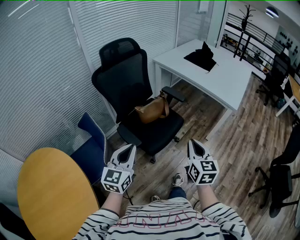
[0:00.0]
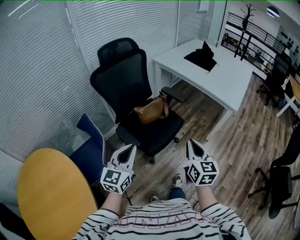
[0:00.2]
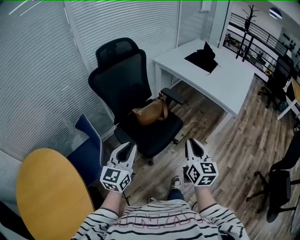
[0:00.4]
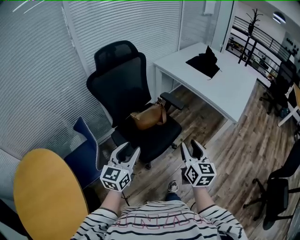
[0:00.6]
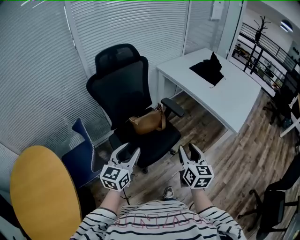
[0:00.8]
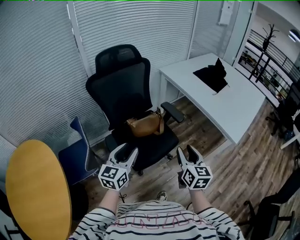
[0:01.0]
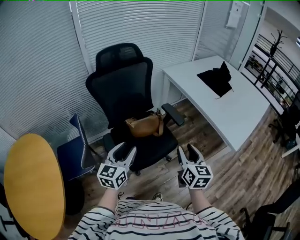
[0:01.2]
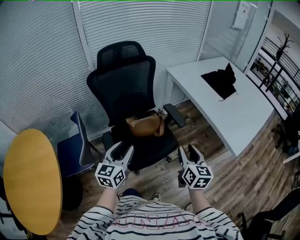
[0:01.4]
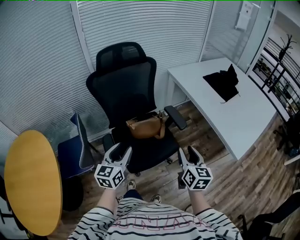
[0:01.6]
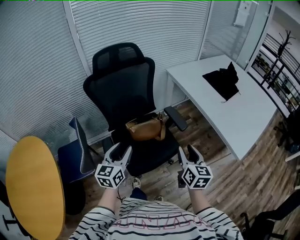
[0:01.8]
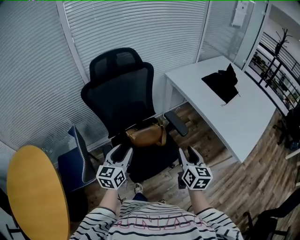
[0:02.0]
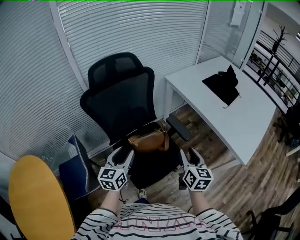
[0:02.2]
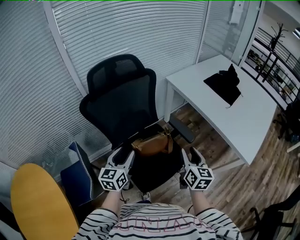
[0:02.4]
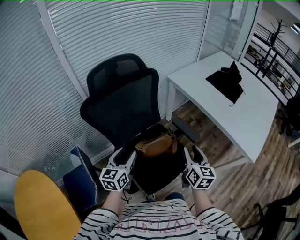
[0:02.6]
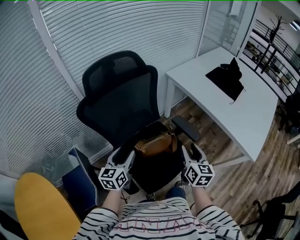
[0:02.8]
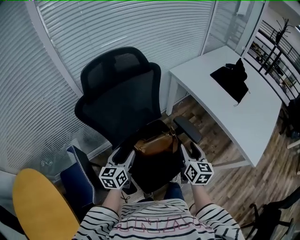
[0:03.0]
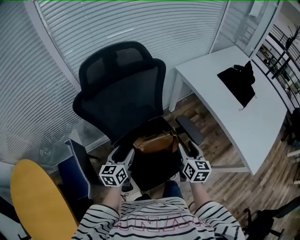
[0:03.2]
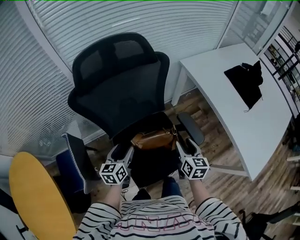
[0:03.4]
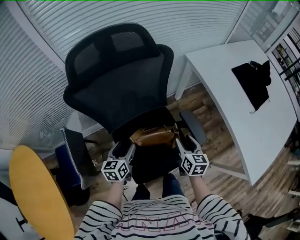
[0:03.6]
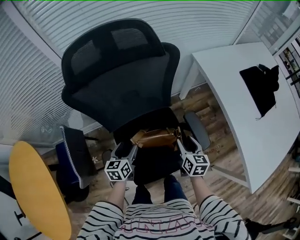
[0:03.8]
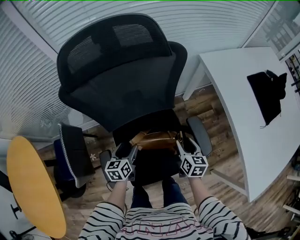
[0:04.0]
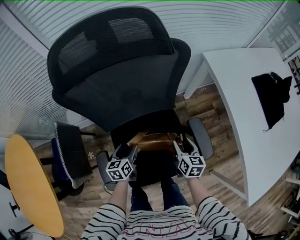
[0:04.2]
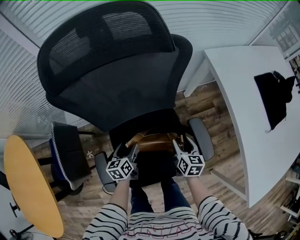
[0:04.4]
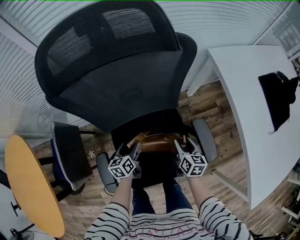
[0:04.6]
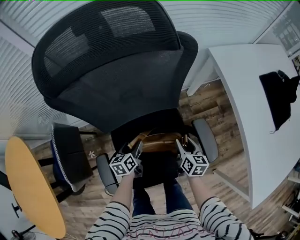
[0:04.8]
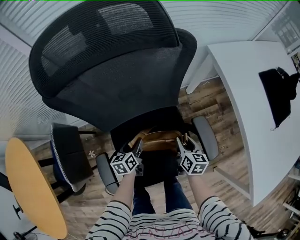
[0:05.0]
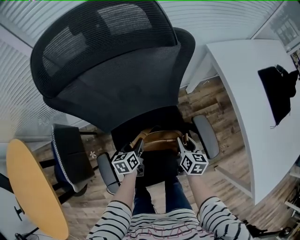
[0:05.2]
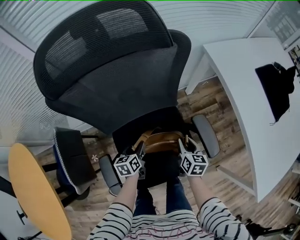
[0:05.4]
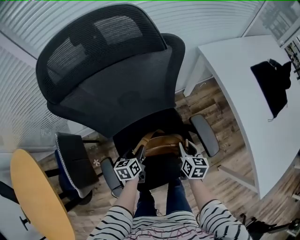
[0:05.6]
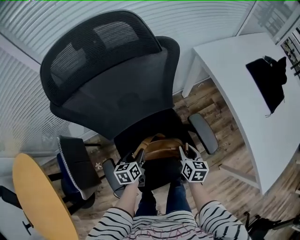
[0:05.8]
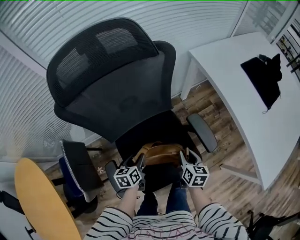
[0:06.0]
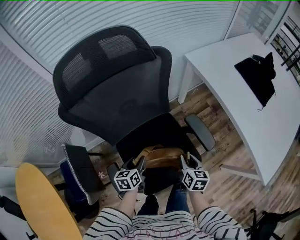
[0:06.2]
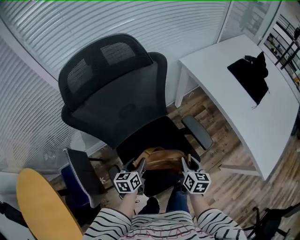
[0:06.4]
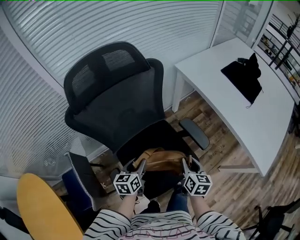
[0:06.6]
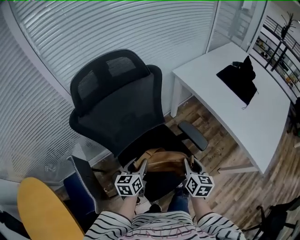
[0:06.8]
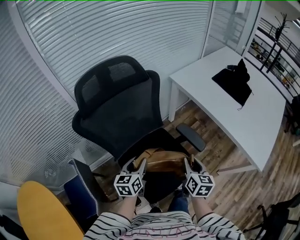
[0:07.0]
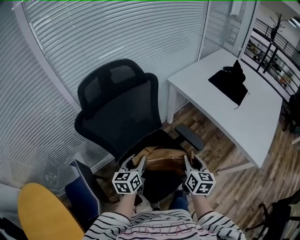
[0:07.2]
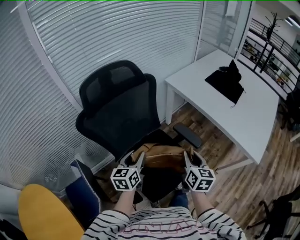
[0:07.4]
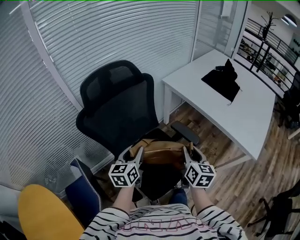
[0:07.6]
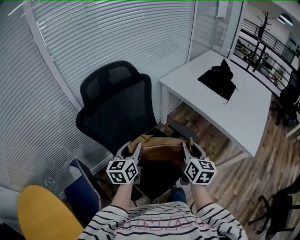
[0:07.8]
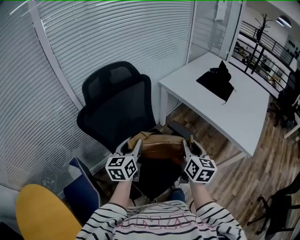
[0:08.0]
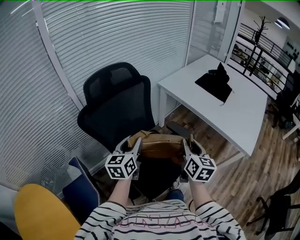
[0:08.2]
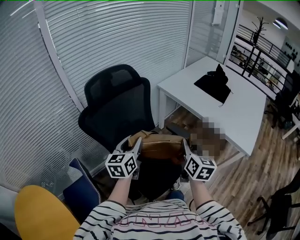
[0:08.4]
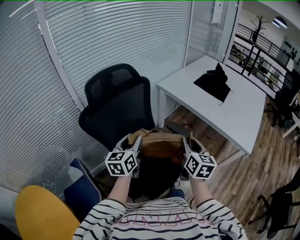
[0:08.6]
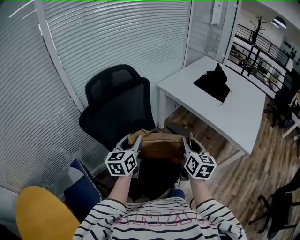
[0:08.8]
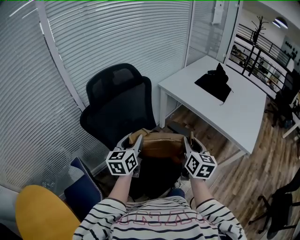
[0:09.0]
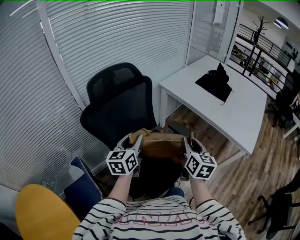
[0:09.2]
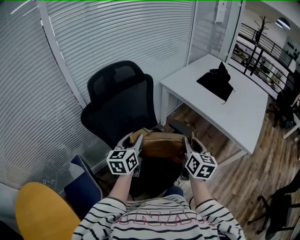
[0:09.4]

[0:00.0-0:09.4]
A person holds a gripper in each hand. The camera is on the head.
0:00.0 to 0:01.6: The two grippers go roughly 25 cm forward and to the right. The left gripper changes its angle by about 20 degrees, and opens, while the right gripper opens.
0:01.6 to 0:03.2: The right gripper is displaced forward, to the left and downward by approximately 25 cm, while the left gripper travels forward, downward and to the left by some 30 cm.
0:03.2 to 0:04.8: The left gripper moves downward, approximately 25 cm, and swivels about 30 degrees, while the right gripper goes some 25 cm downward and forward, and rotates approximately 20 degrees.
0:04.8 to 0:06.2: The left gripper travels upward and backward by about 10 cm, and closes its fingers. The right gripper moves backward and upward, some 15 cm.
0:06.2 to 0:07.8: Both grippers travel together upward, some 25 cm. The right gripper changes its angle by roughly 30 degrees; the left gripper changes its angle by about 30 degrees.
0:07.8 to 0:09.4: The grippers stay close to where they were, moving slightly.

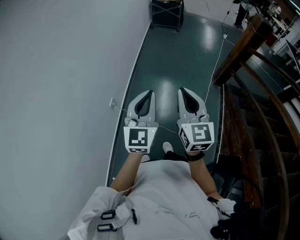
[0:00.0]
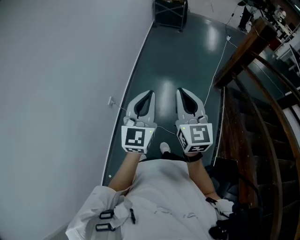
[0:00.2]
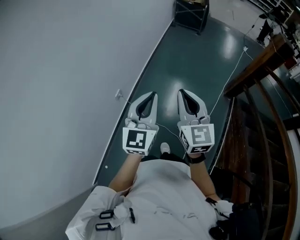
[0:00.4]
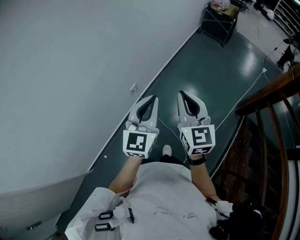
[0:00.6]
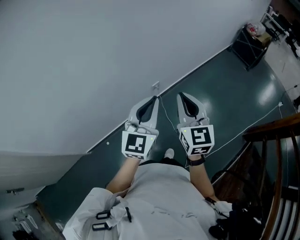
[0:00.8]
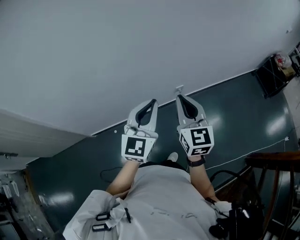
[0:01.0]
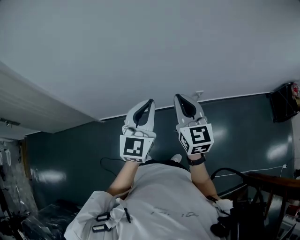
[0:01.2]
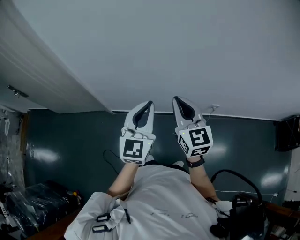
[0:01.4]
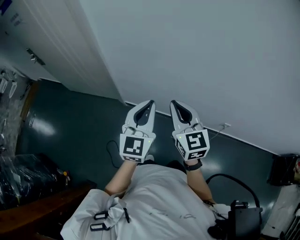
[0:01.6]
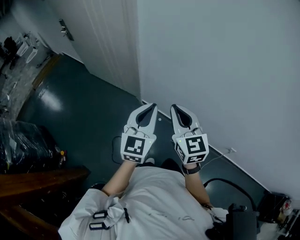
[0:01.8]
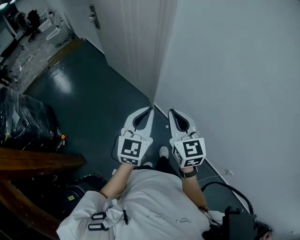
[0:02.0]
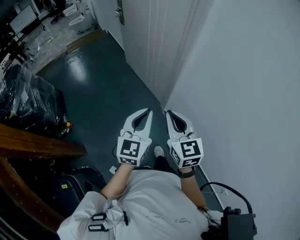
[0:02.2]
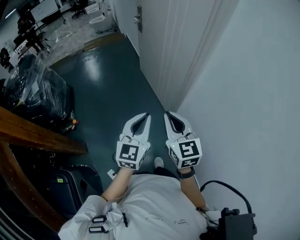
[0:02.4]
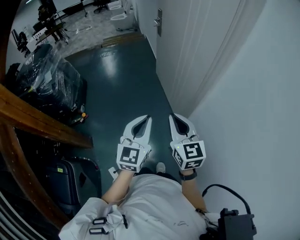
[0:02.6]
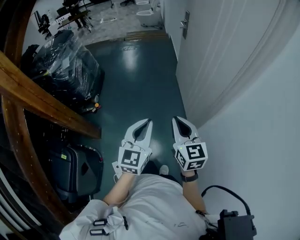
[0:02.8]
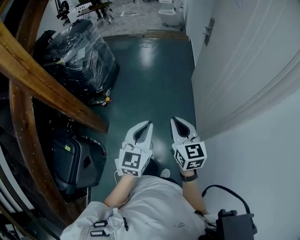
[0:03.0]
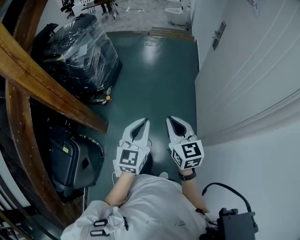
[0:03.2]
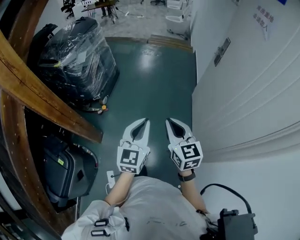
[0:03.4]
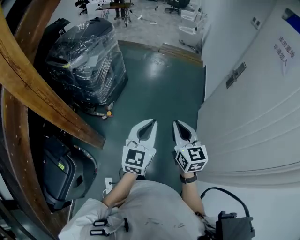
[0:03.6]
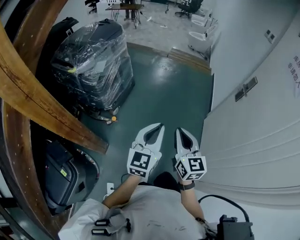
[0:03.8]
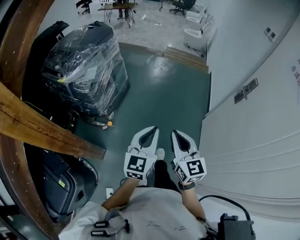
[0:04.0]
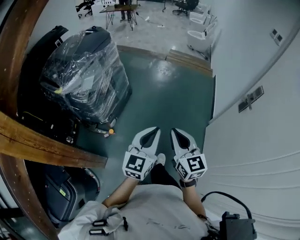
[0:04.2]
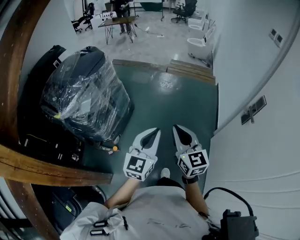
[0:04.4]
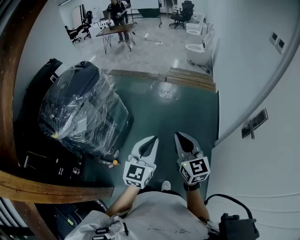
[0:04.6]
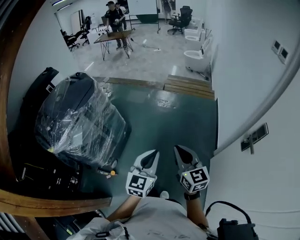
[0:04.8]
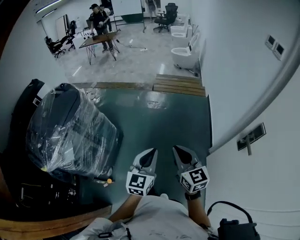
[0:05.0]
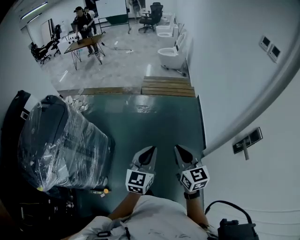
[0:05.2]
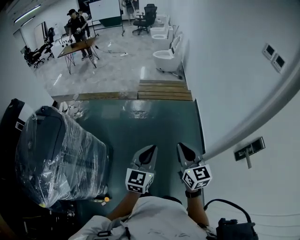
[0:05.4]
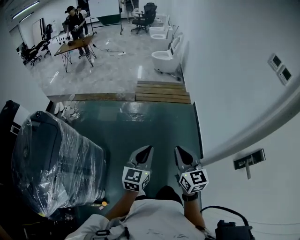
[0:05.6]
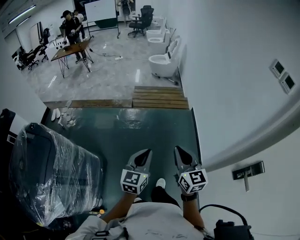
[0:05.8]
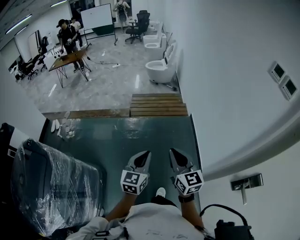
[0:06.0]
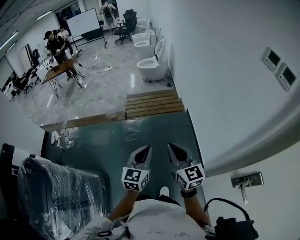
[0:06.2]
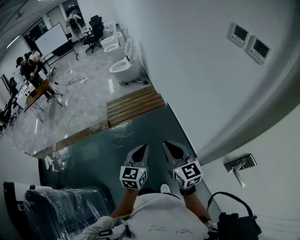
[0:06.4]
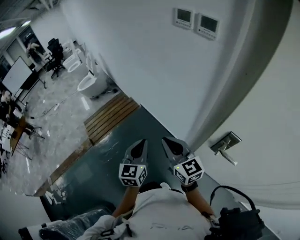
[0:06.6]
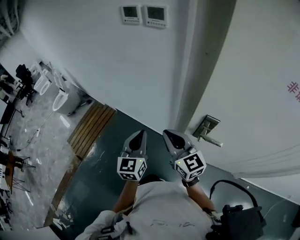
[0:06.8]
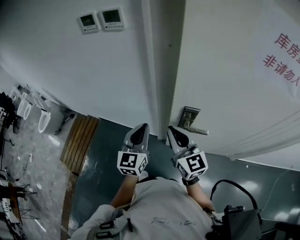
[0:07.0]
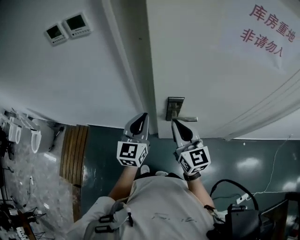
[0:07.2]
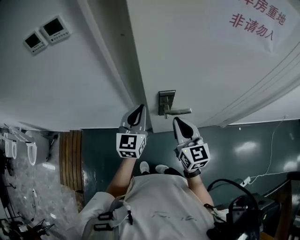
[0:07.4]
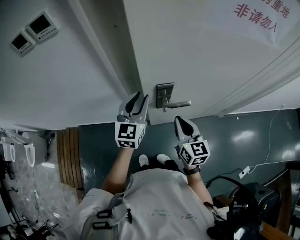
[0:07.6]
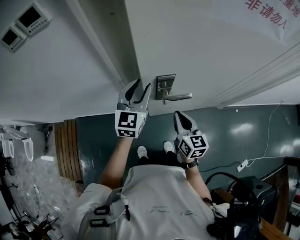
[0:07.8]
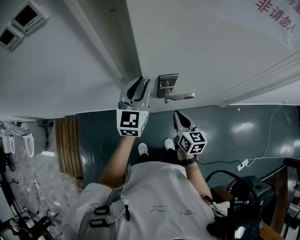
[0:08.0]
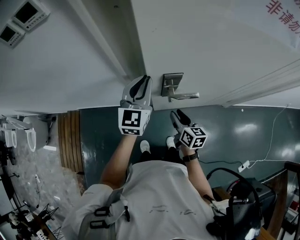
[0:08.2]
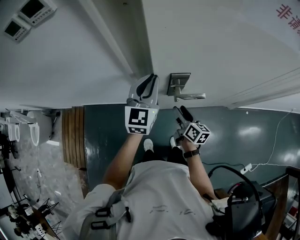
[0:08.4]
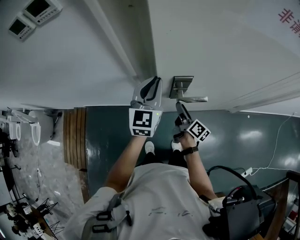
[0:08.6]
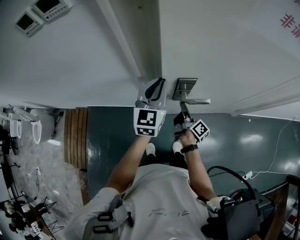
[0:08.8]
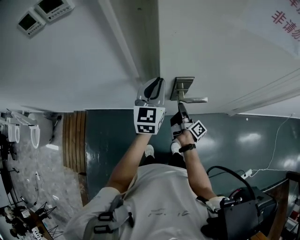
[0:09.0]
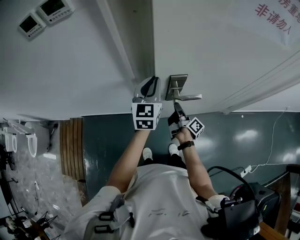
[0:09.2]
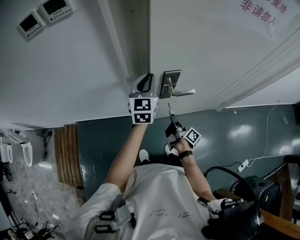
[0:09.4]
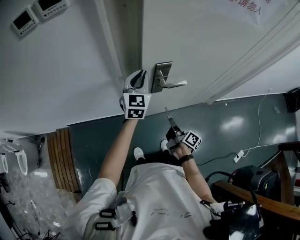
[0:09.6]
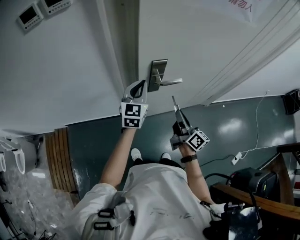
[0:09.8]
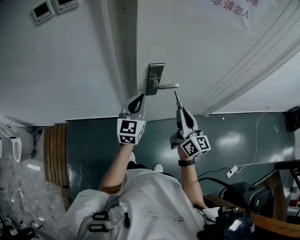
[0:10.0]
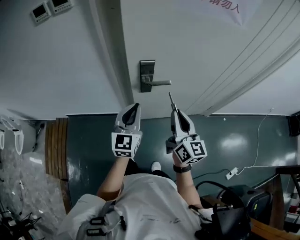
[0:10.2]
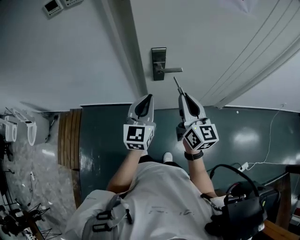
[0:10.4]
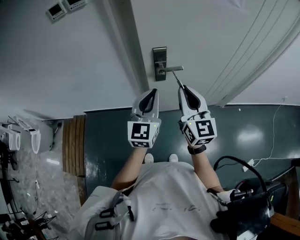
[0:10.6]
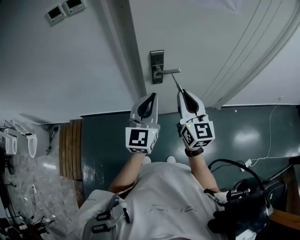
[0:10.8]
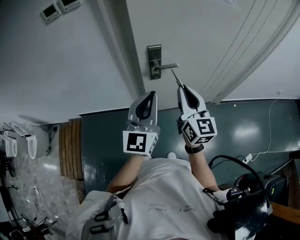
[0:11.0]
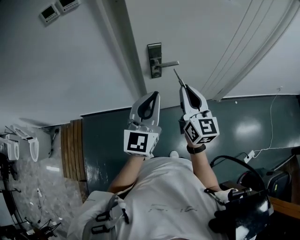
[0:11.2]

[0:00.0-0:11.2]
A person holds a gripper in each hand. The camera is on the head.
0:00.0 to 0:01.6: Both grippers are carried approximately 60 cm. The left gripper rotates roughly 90 degrees. The right gripper turns by some 100 degrees.
0:01.6 to 0:03.2: Both grippers are carried roughly 50 cm. The left gripper changes its angle by roughly 80 degrees, while the right gripper turns by some 80 degrees.
0:03.2 to 0:04.8: The two grippers travel together, forward, about 60 cm.
0:04.8 to 0:06.4: The pair of grippers is taken approximately 50 cm. The right gripper swivels approximately 30 degrees. The left gripper turns by about 30 degrees.
0:06.4 to 0:08.0: The right gripper ends up roughly 40 cm from where it was, and changes its angle by some 90 degrees. Meanwhile the left gripper changes place by about 50 cm, changes its angle by roughly 70 degrees, and opens up.
0:08.0 to 0:09.6: The right gripper goes roughly 10 cm backward and downward, twists some 50 degrees clockwise, seen from behind, and opens and closes again.
0:09.6 to 0:11.2: The right gripper heads upward, covering some 30 cm, and rolls counterclockwise, seen from behind, by roughly 70 degrees. The left gripper moves backward and upward, roughly 30 cm.

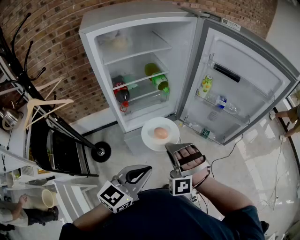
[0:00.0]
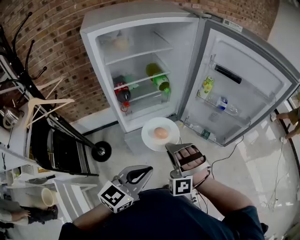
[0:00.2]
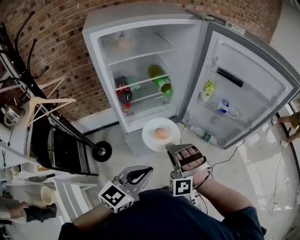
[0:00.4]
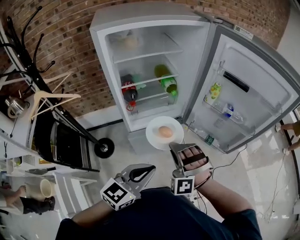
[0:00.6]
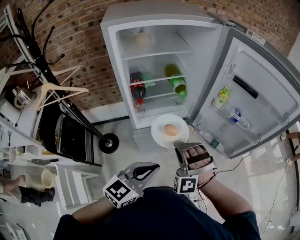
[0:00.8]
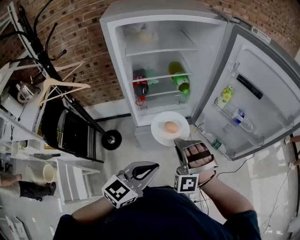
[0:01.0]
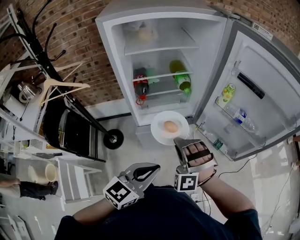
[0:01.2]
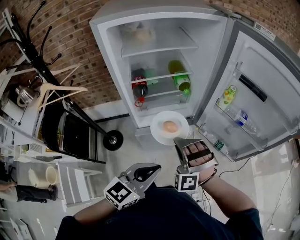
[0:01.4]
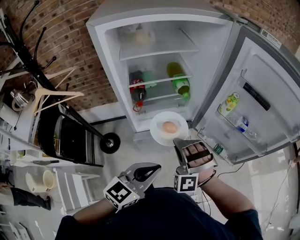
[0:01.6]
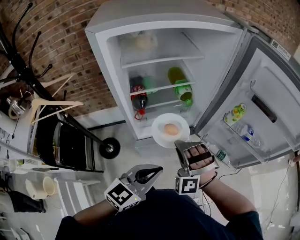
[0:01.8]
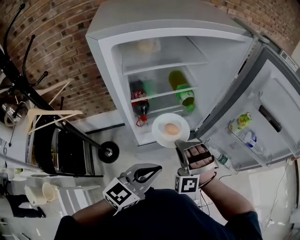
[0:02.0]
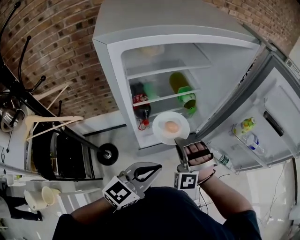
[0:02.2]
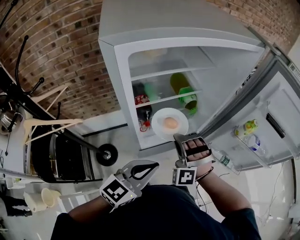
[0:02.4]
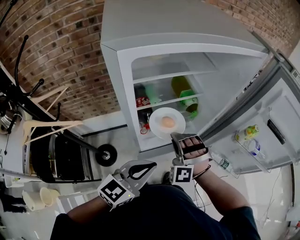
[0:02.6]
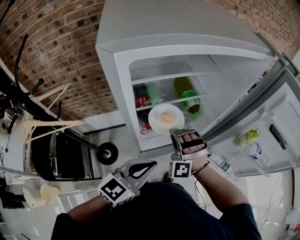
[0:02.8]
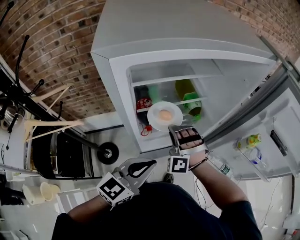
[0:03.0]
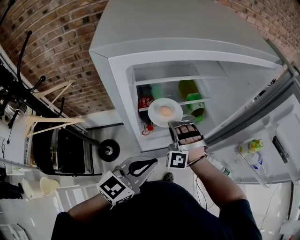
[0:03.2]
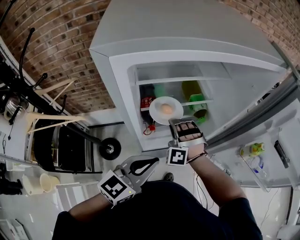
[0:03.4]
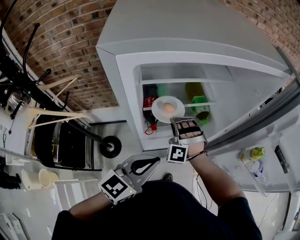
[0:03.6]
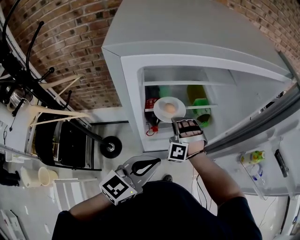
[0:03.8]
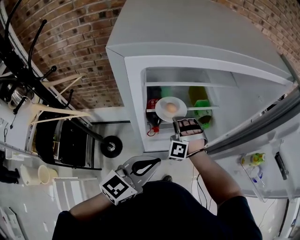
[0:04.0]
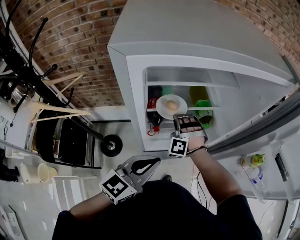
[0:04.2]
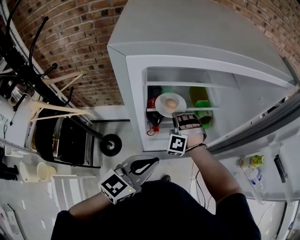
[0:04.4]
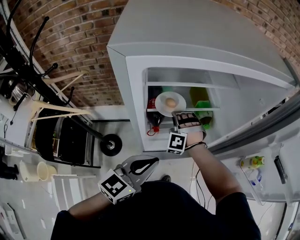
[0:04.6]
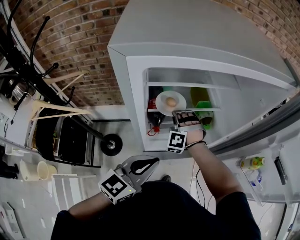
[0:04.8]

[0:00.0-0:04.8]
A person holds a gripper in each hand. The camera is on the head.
0:00.0 to 0:01.6: The left gripper moves some 10 cm.
0:01.6 to 0:03.2: The left gripper shifts by approximately 20 cm.
